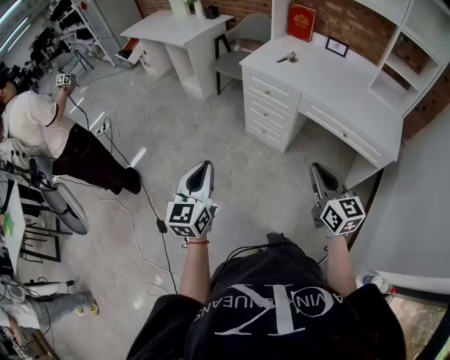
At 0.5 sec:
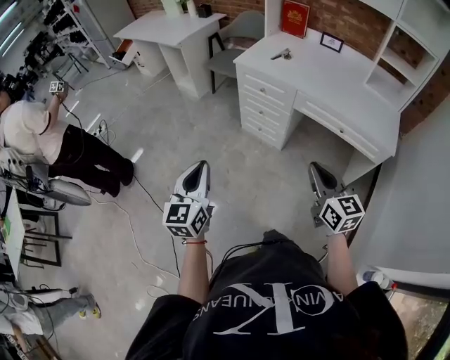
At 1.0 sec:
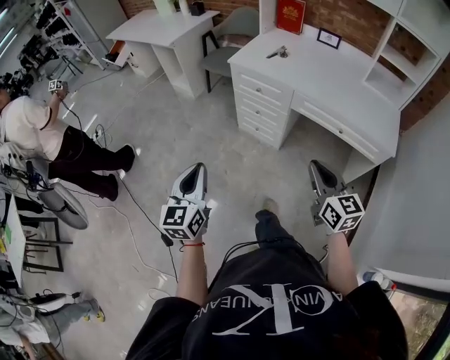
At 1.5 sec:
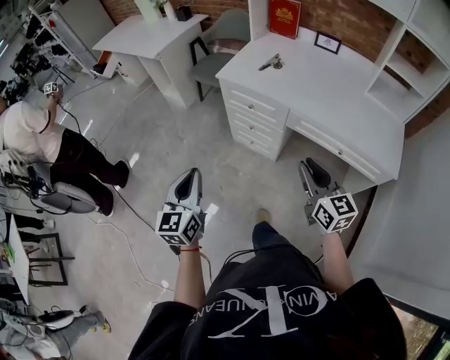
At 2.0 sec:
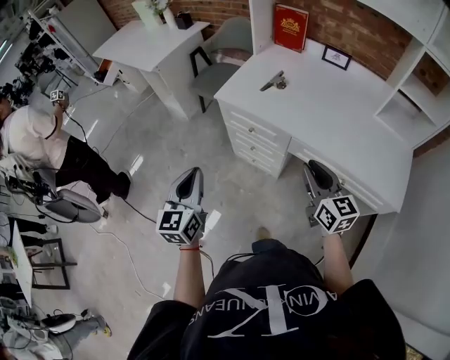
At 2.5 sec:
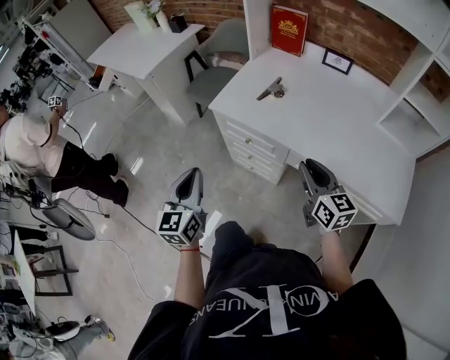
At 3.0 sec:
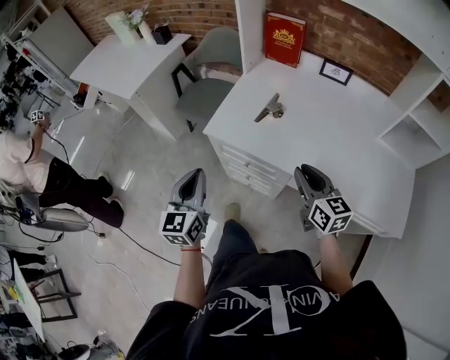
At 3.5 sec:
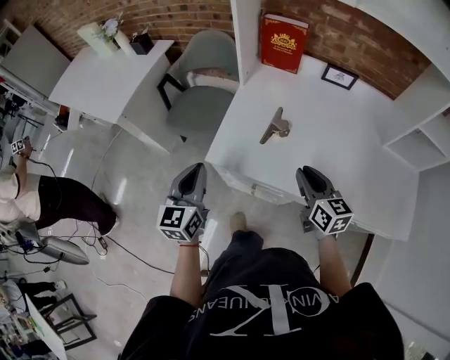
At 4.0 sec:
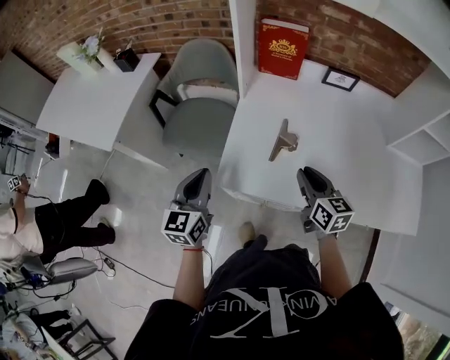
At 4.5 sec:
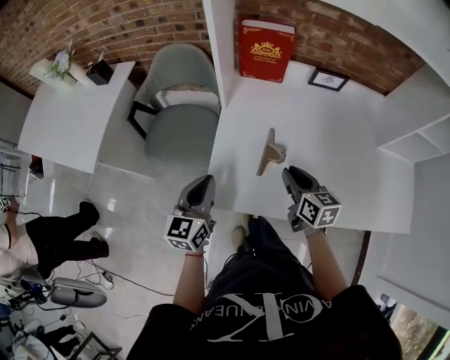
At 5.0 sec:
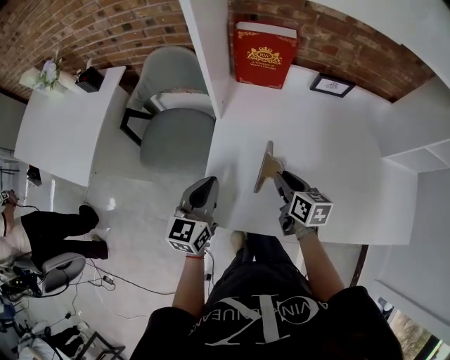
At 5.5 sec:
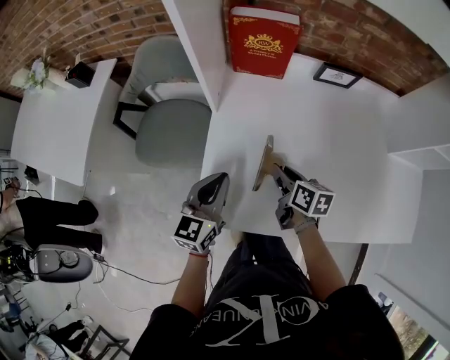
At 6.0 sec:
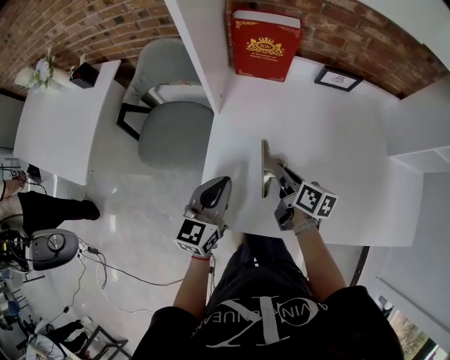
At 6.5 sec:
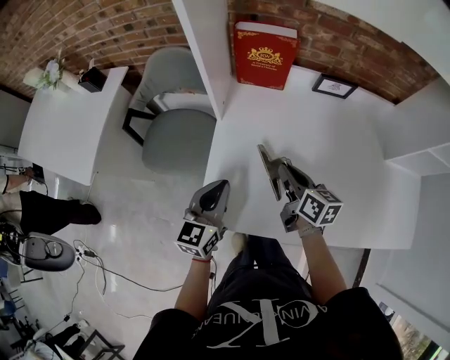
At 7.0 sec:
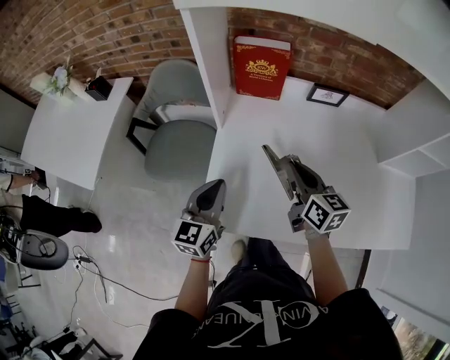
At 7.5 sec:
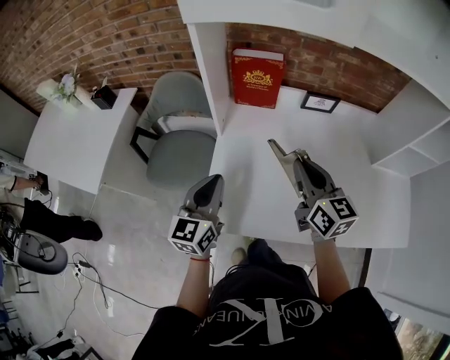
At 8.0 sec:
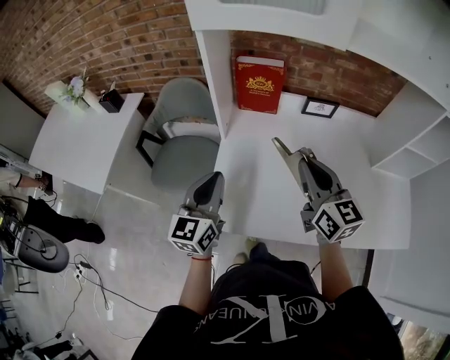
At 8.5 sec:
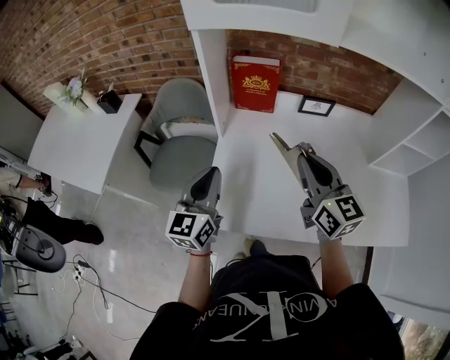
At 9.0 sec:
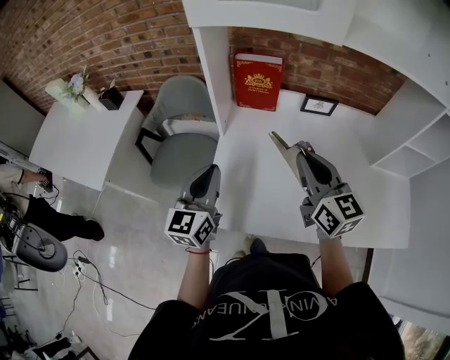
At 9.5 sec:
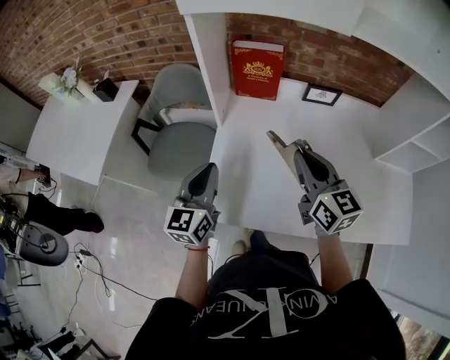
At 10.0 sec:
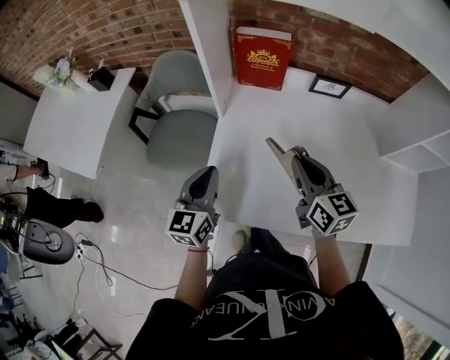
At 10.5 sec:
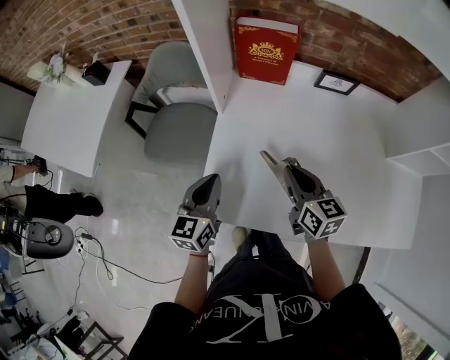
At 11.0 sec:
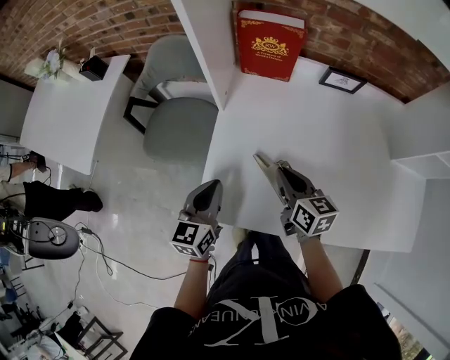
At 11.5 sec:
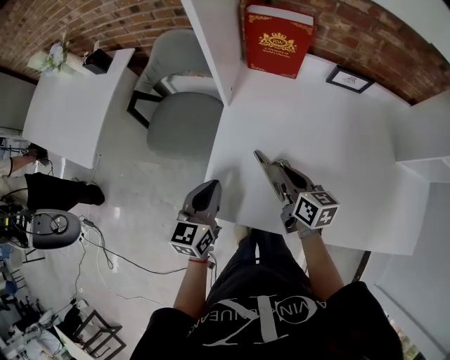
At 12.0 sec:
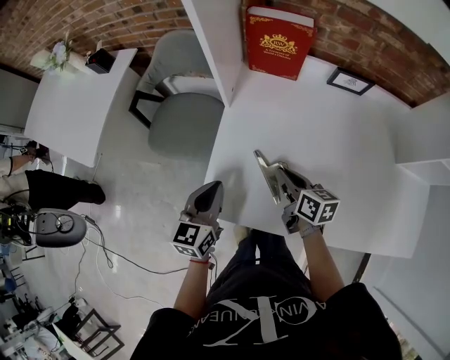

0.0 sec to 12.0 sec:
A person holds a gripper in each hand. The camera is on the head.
0.0 sec to 2.0 sec: The two grippers go roughly 30 cm forward.
2.0 sec to 4.0 sec: Both grippers move forward, some 40 cm. The right gripper changes its angle by some 30 degrees. Meanwhile the left gripper rotates about 20 degrees.
4.0 sec to 6.0 sec: The left gripper moves forward, to the right and downward, approximately 20 cm, while the right gripper moves forward and downward, some 15 cm, and changes its angle by about 40 degrees.
6.0 sec to 8.0 sec: The right gripper travels upward by about 25 cm, and rotates around the line of its fingers by roughly 40 degrees, counterclockwise from behind. The left gripper goes some 15 cm upward.
8.0 sec to 10.0 sec: The grippers both shift downward by roughly 10 cm.
10.0 sec to 12.0 sec: The left gripper moves downward, some 5 cm, while the right gripper is displaced downward by roughly 15 cm, and swivels approximately 30 degrees.

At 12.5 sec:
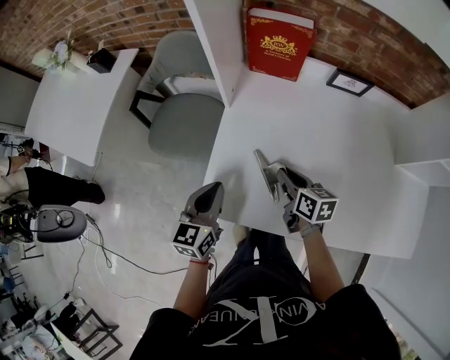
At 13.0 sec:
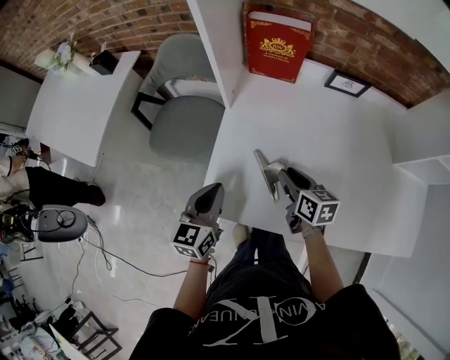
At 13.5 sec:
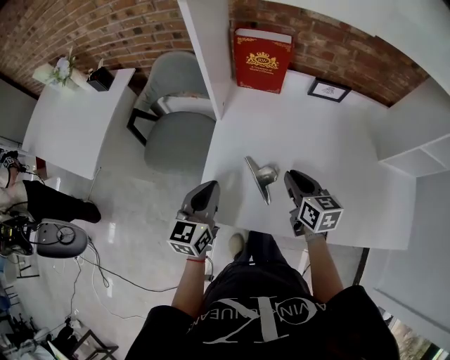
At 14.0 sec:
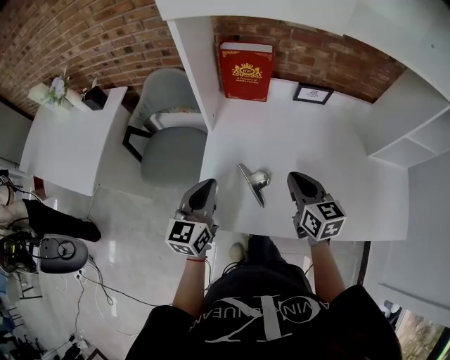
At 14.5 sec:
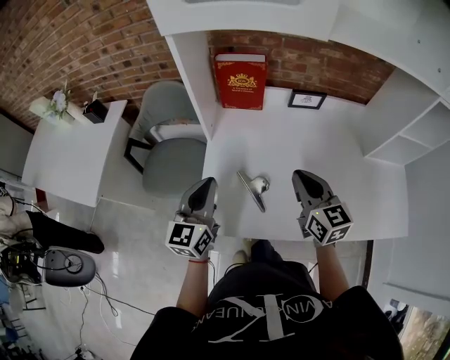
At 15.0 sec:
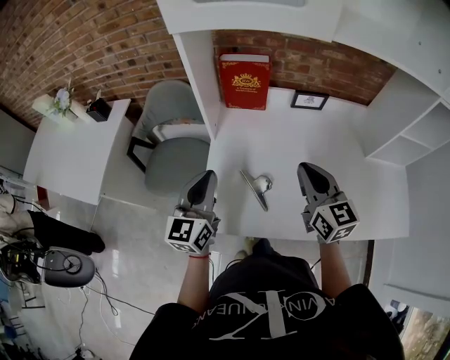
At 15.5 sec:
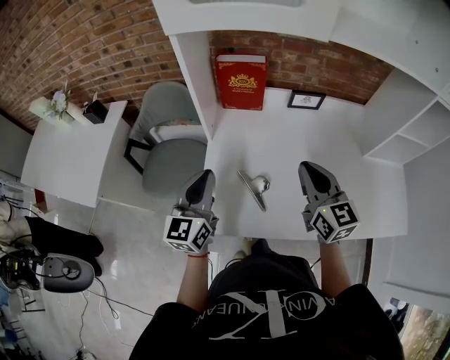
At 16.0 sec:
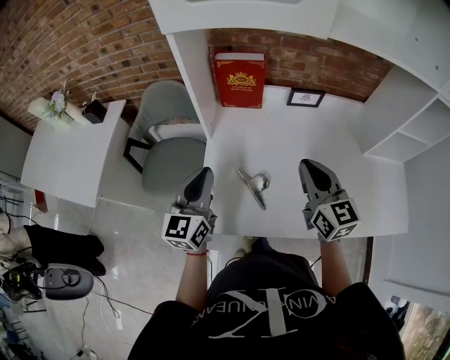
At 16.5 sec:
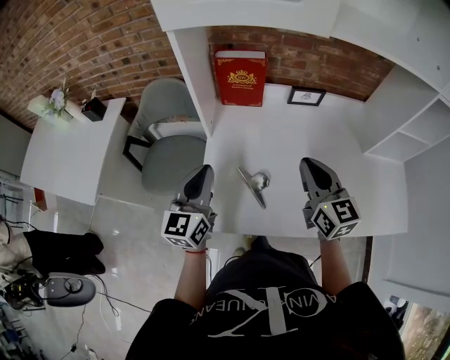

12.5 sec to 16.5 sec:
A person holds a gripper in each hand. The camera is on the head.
12.5 sec to 14.5 sec: The left gripper moves upward, approximately 10 cm. The right gripper heads upward, covering approximately 20 cm, and changes its angle by about 40 degrees.
14.5 sec to 16.5 sec: There are only small adjustments of the grippers.

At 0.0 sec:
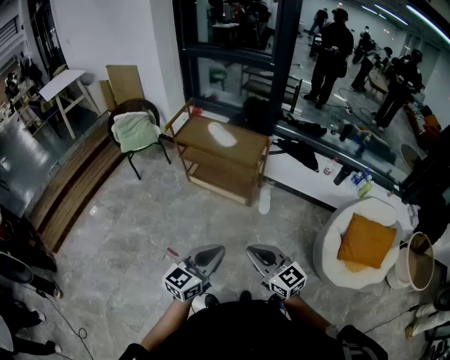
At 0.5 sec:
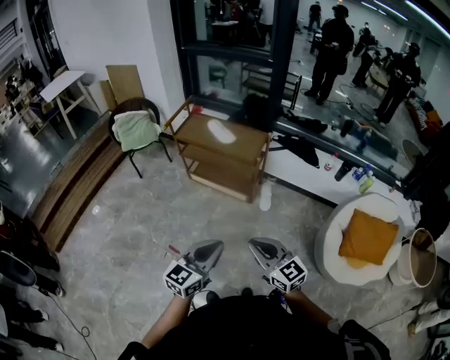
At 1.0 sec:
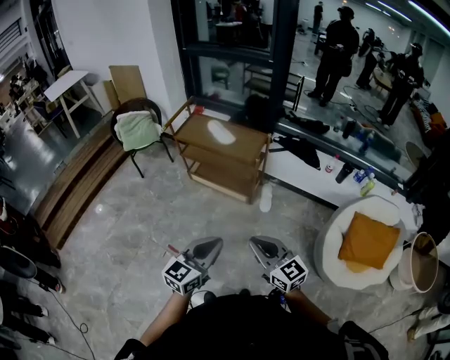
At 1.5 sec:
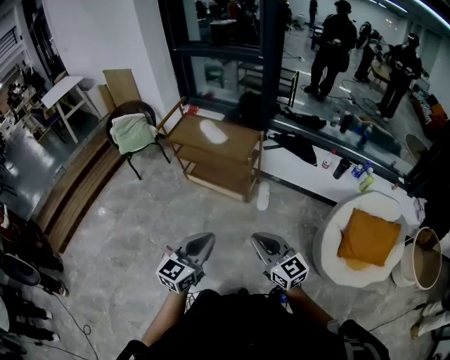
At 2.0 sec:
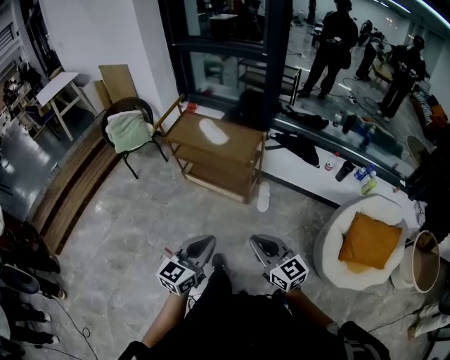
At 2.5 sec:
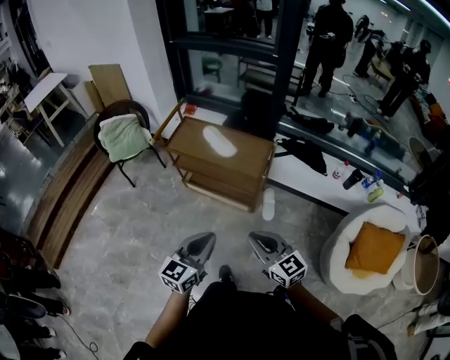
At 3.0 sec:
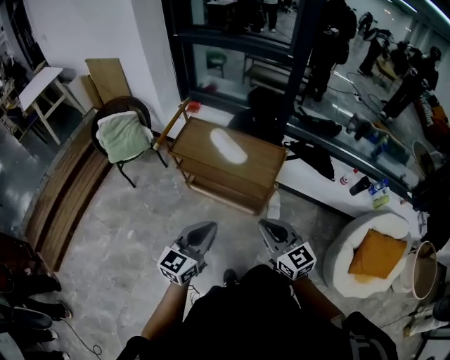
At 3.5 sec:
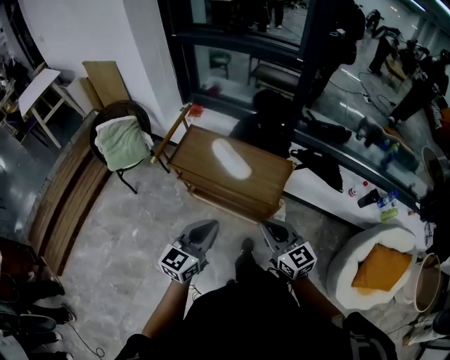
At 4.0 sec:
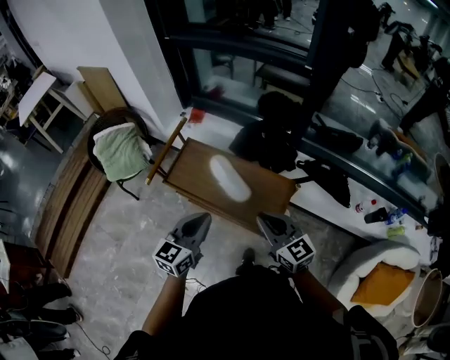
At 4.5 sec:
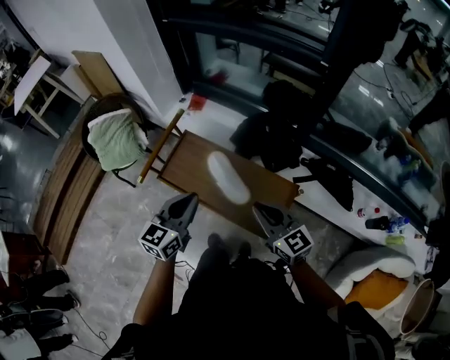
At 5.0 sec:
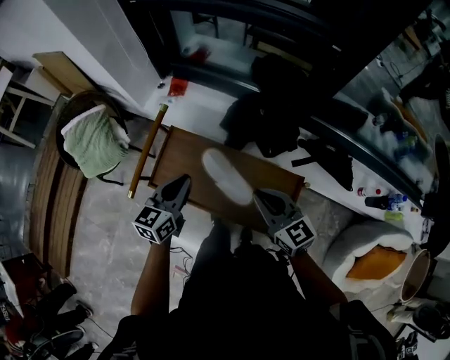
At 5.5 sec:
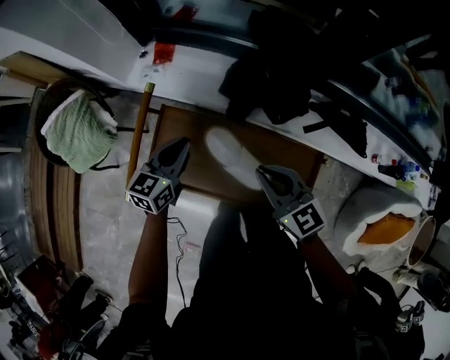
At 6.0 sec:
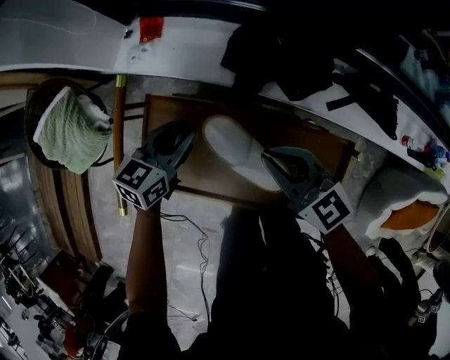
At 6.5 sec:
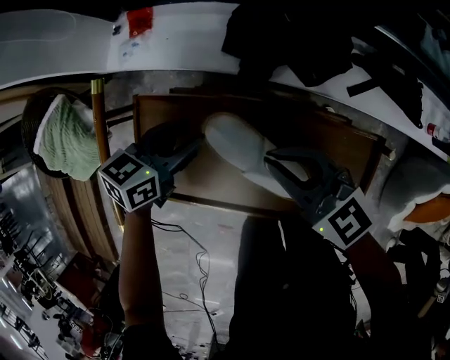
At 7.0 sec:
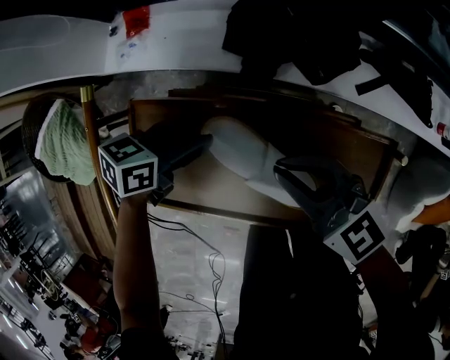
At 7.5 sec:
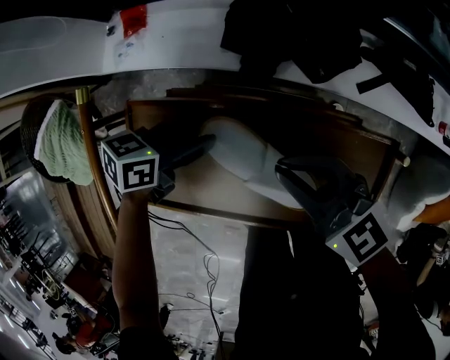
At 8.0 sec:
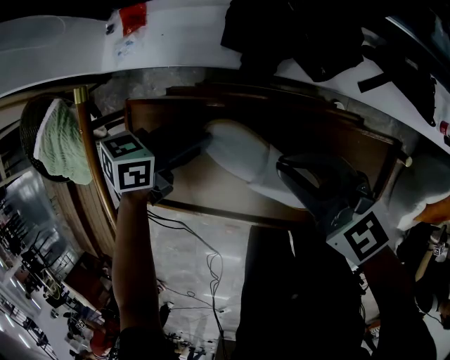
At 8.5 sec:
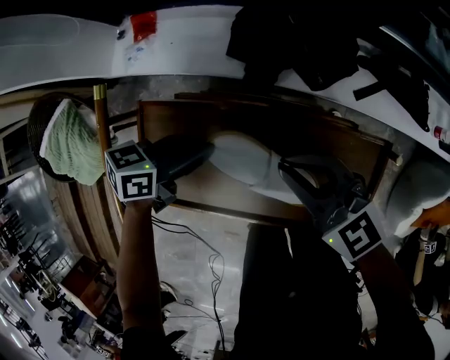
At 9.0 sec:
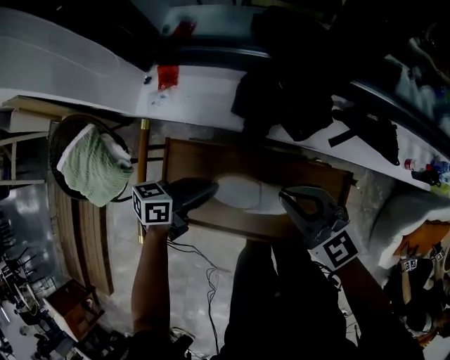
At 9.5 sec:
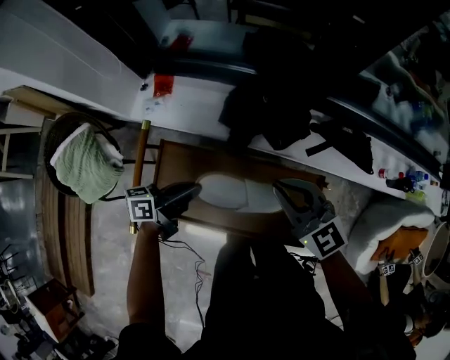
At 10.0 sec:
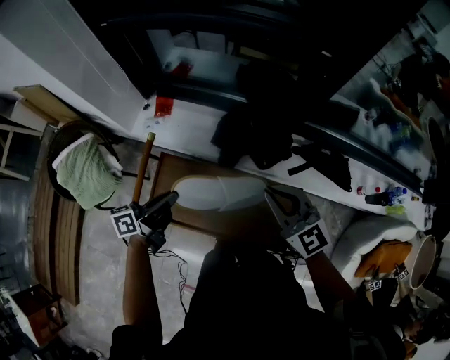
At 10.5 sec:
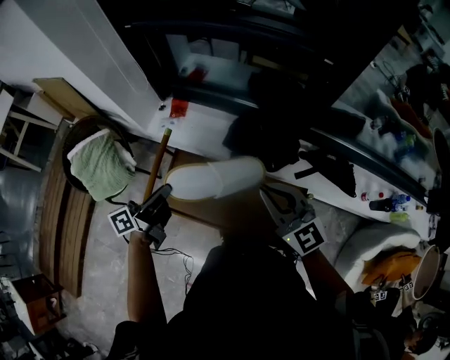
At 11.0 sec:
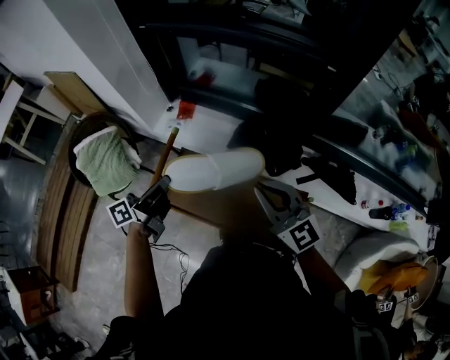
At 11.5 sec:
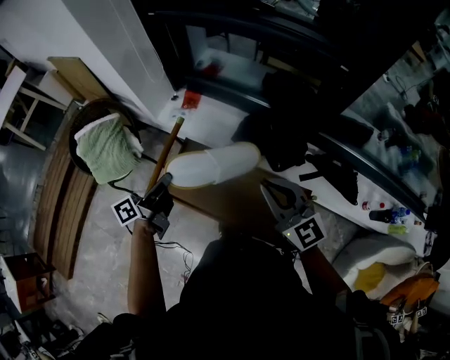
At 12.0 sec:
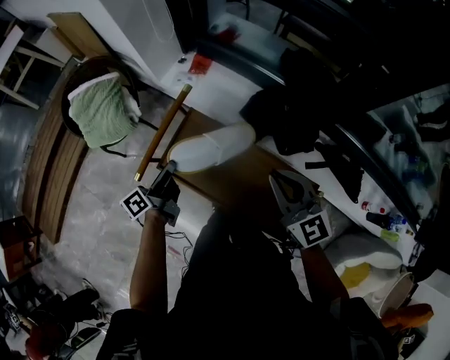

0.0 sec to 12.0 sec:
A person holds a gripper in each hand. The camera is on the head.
0.0 sec to 2.0 sec: The left gripper shifts some 10 cm forward; the right gripper moves to the right and forward, approximately 10 cm.
2.0 sec to 4.0 sec: The two grippers travel together, forward, some 50 cm.
4.0 sec to 6.0 sec: The grippers both shift forward and downward by roughly 35 cm. The left gripper changes its angle by approximately 30 degrees.
6.0 sec to 8.0 sec: The left gripper travels downward by some 10 cm, rotates some 30 degrees, and opens, then closes once more.
8.0 sec to 10.0 sec: The grippers both shift upward by about 25 cm. The left gripper turns by approximately 40 degrees.
10.0 sec to 12.0 sec: The right gripper is displaced to the left by some 5 cm, while the left gripper travels to the left and downward by some 10 cm, and rotates some 40 degrees.
